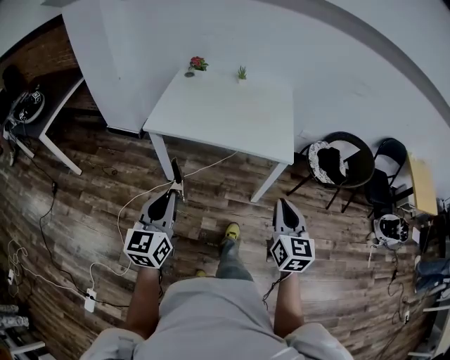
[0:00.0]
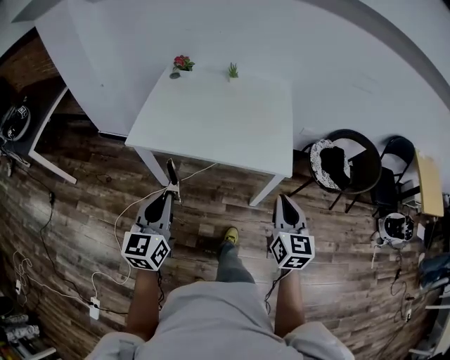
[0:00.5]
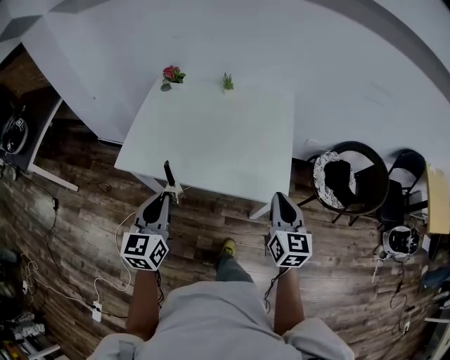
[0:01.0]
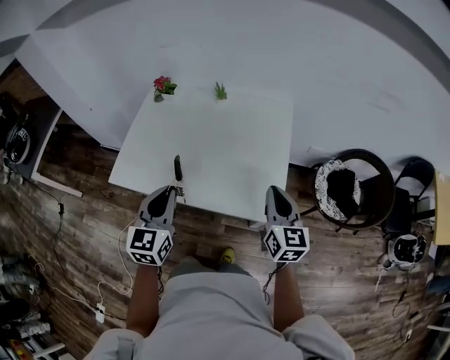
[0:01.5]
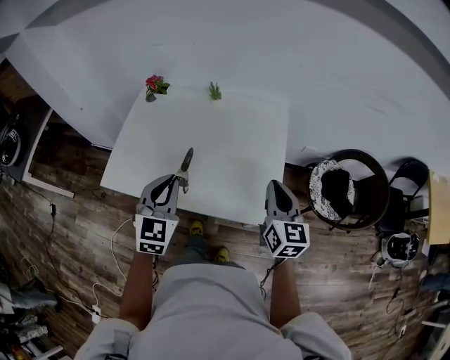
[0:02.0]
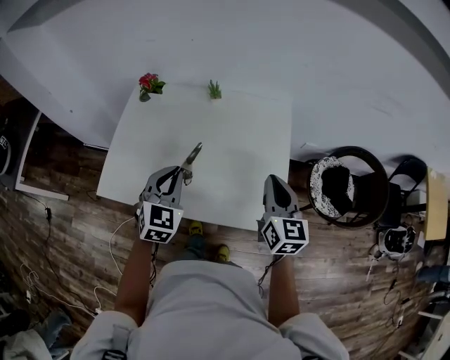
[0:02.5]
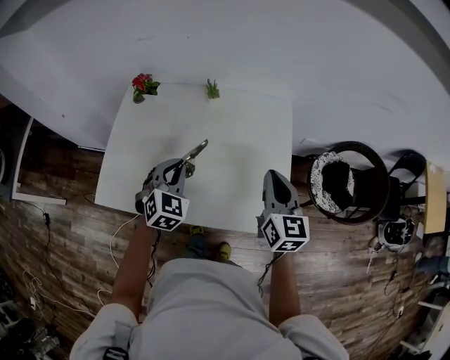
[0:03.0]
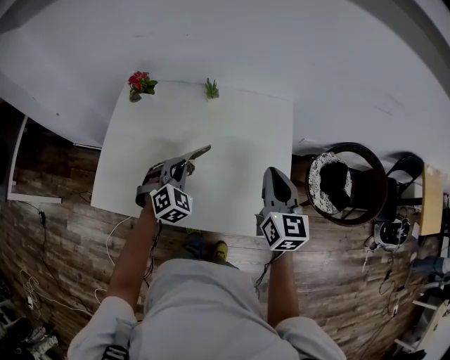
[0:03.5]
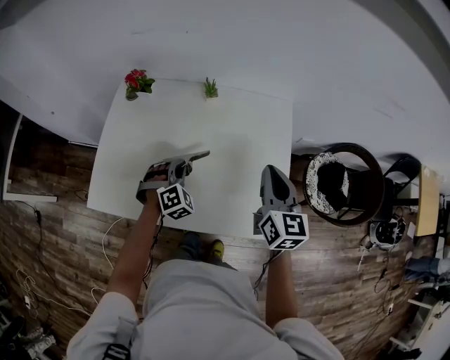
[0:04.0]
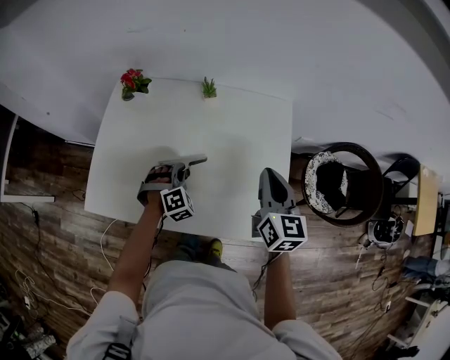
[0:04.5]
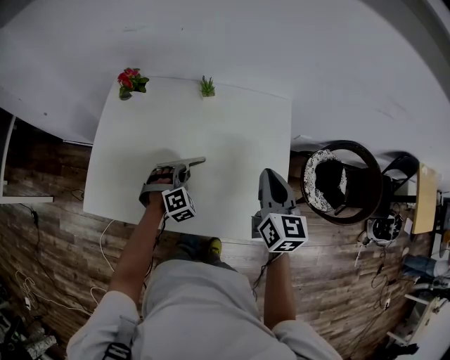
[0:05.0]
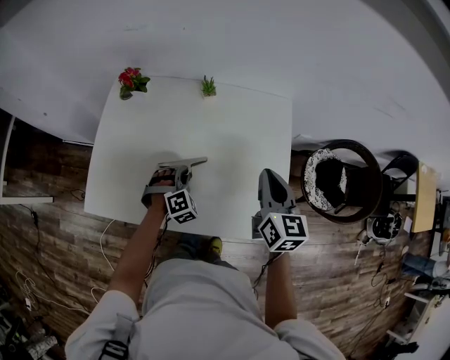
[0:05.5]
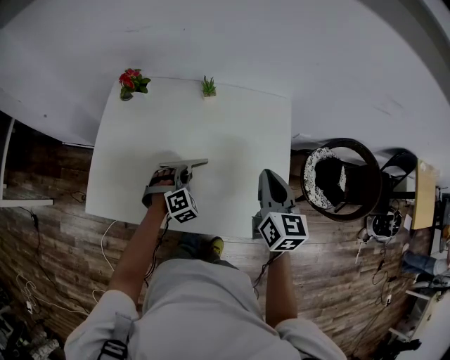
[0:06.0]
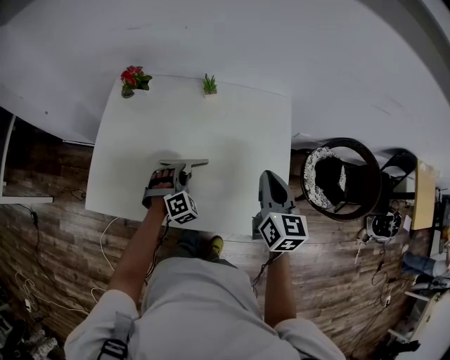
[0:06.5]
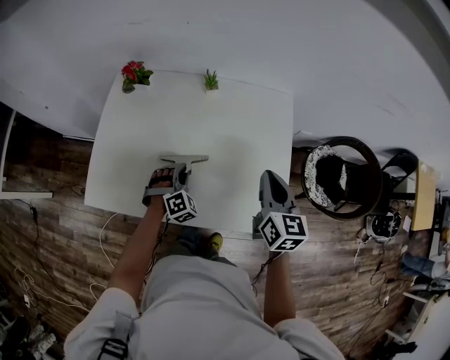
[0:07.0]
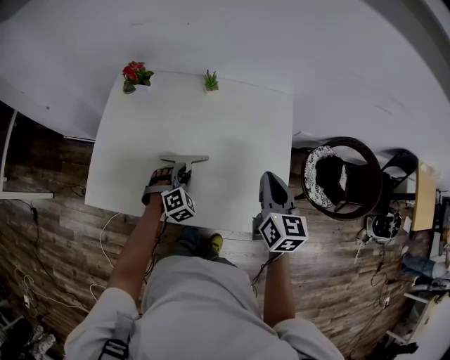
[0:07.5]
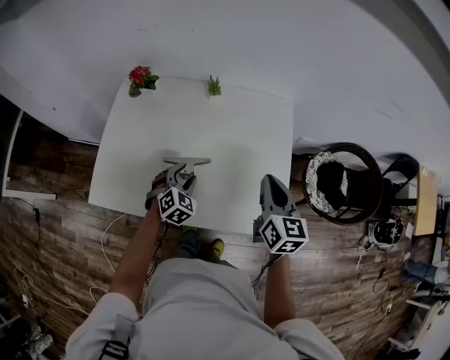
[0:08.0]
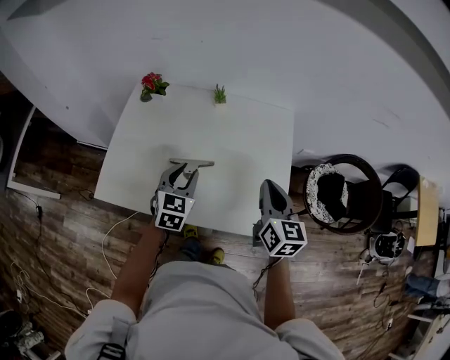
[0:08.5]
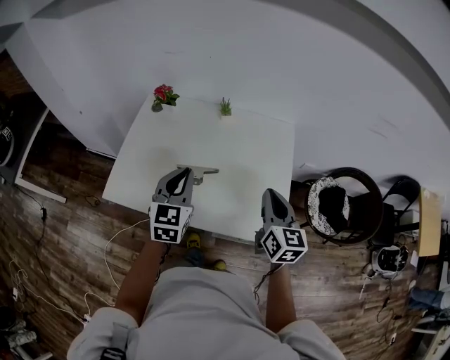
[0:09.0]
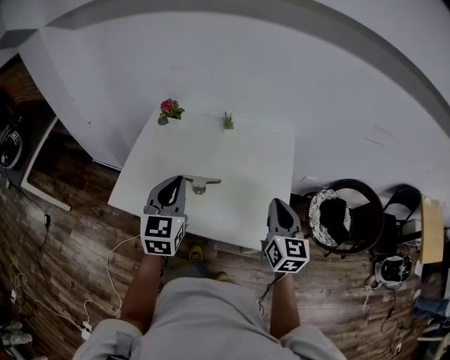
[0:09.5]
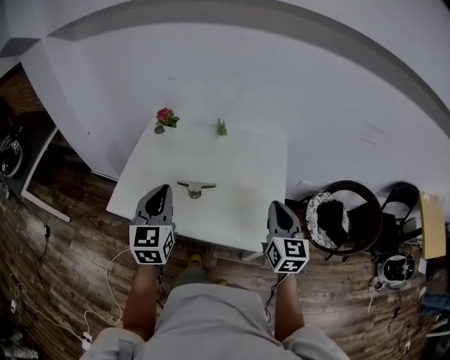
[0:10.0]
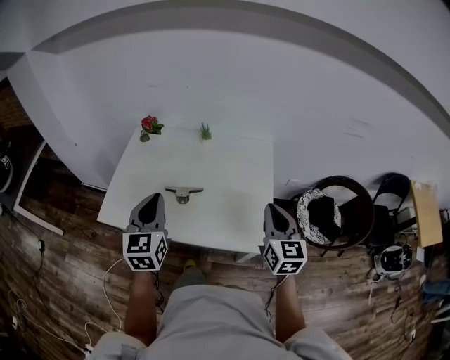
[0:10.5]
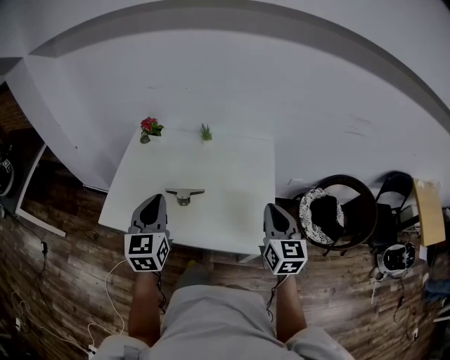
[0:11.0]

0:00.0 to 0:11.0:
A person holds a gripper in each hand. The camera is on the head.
0:00.0 to 0:02.0: Both grippers are carried forward, about 50 cm. The left gripper turns by some 30 degrees.
0:02.0 to 0:03.5: The left gripper heads forward and downward, covering about 25 cm, and changes its angle by roughly 40 degrees, while the right gripper travels forward and to the left by some 15 cm.
0:03.5 to 0:05.5: The left gripper is displaced downward by some 10 cm, and rotates approximately 20 degrees.
0:05.5 to 0:07.5: The left gripper opens its fingers.
0:07.5 to 0:09.0: The right gripper travels backward by about 5 cm. The left gripper travels upward by approximately 25 cm, rotates around the line of its fingers by roughly 50 degrees, counterclockwise from behind, and closes its fingers.
0:09.0 to 0:11.0: The left gripper is displaced backward and upward by roughly 10 cm, while the right gripper goes some 5 cm to the right.

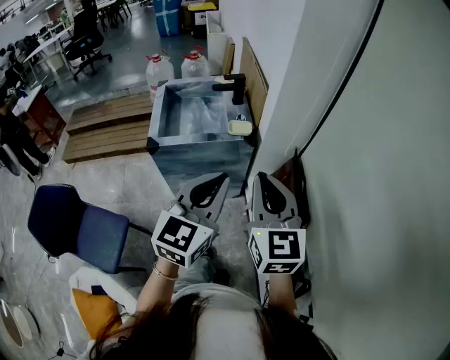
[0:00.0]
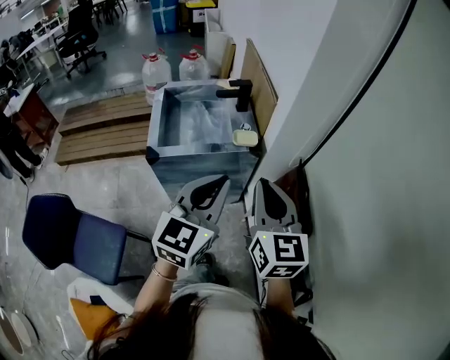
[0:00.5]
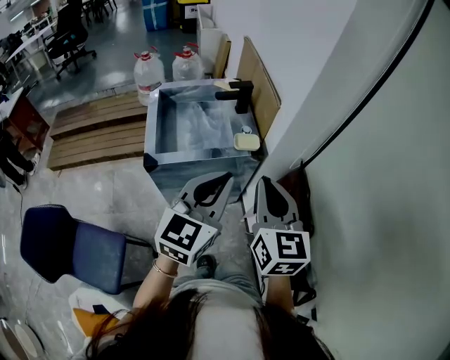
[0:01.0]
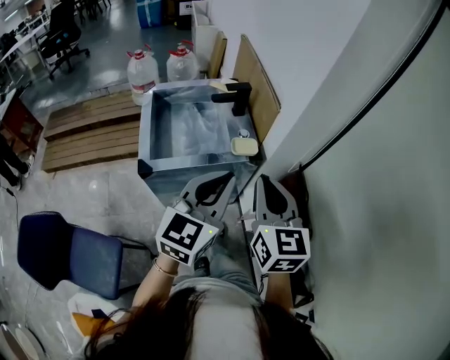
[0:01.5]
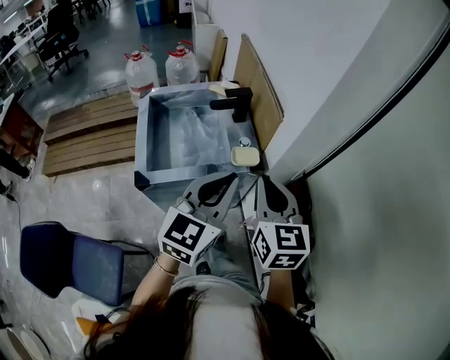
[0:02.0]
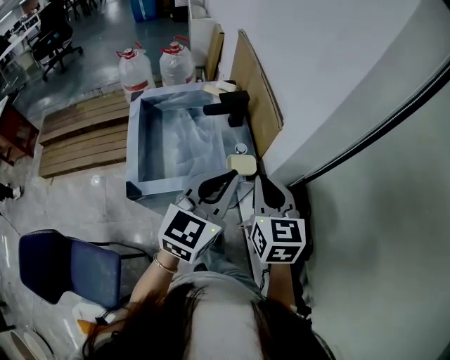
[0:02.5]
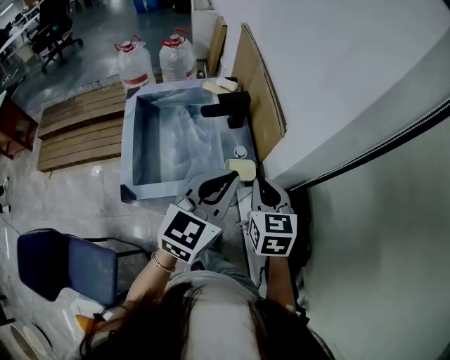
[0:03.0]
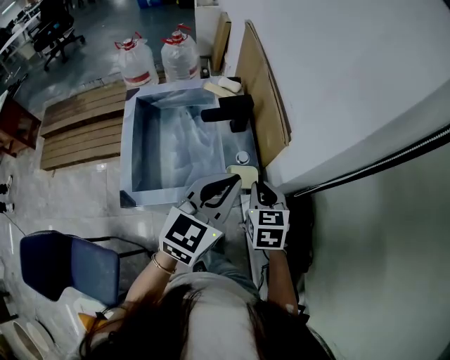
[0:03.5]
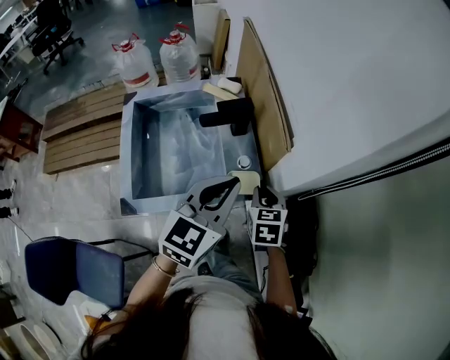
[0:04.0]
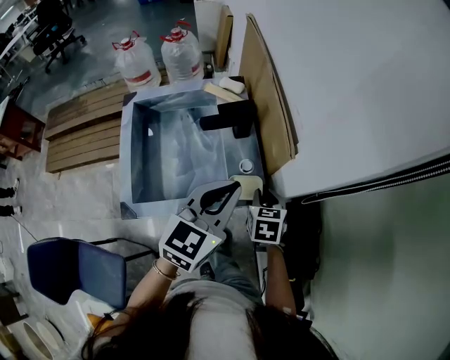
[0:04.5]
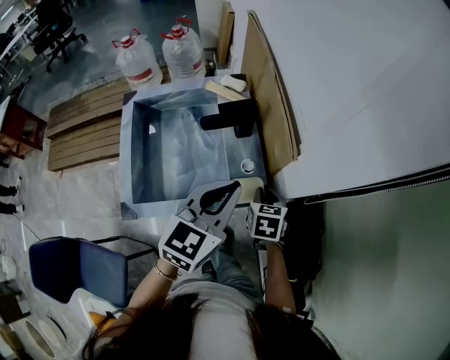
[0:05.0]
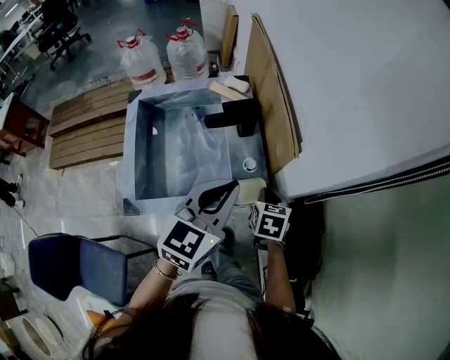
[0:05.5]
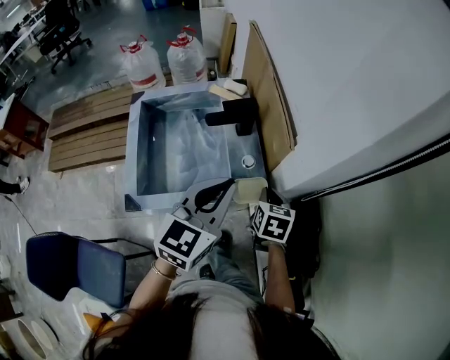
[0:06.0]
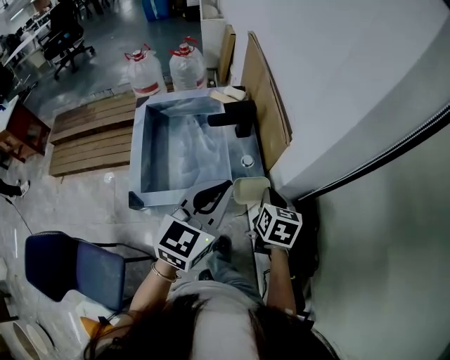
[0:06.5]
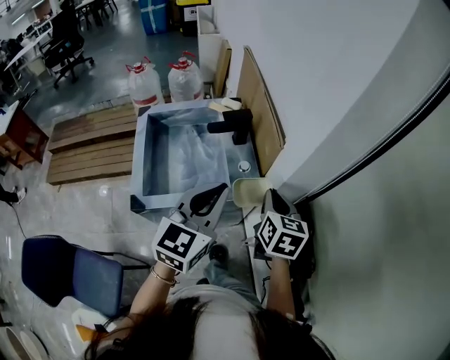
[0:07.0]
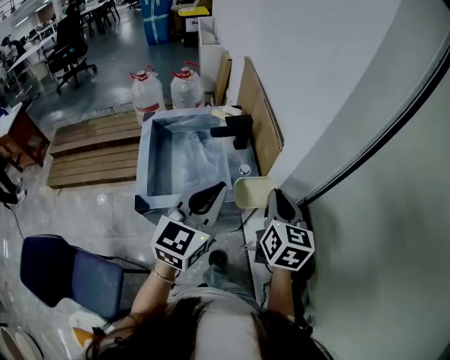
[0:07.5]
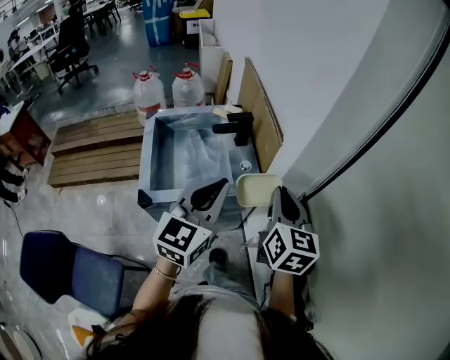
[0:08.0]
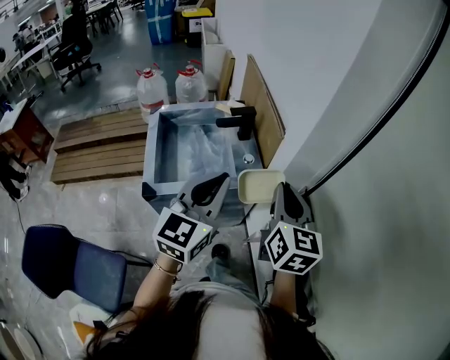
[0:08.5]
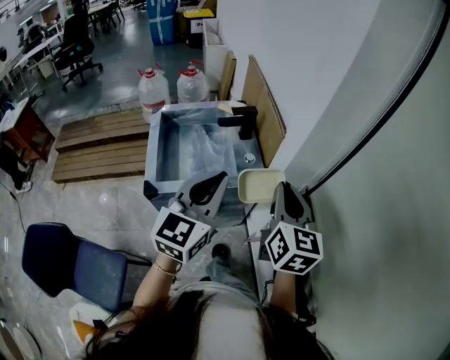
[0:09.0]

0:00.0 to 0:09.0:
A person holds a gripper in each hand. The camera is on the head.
0:00.0 to 0:02.0: The right gripper heads forward and to the left, covering about 20 cm. The left gripper shifts about 20 cm forward.
0:02.0 to 0:04.5: The right gripper travels downward and forward by approximately 35 cm, and tips its fingers downward by roughly 30 degrees; the left gripper moves forward and downward, approximately 20 cm.
0:04.5 to 0:07.0: The left gripper moves backward and upward, approximately 10 cm. Meanwhile the right gripper shifts roughly 20 cm upward and backward, and turns by some 20 degrees.
0:07.0 to 0:09.0: The left gripper goes some 10 cm backward. Meanwhile the right gripper moves upward and backward, about 15 cm.

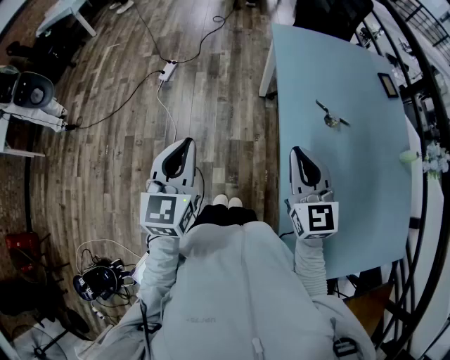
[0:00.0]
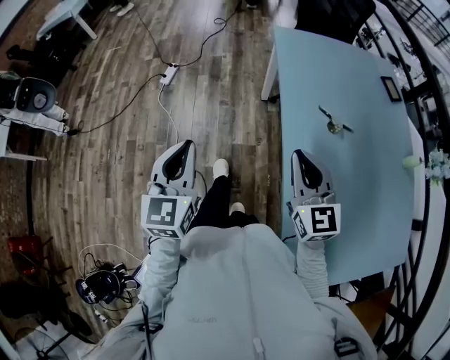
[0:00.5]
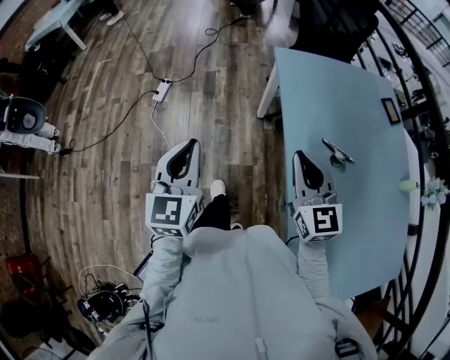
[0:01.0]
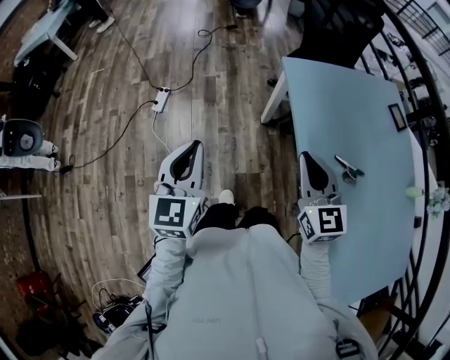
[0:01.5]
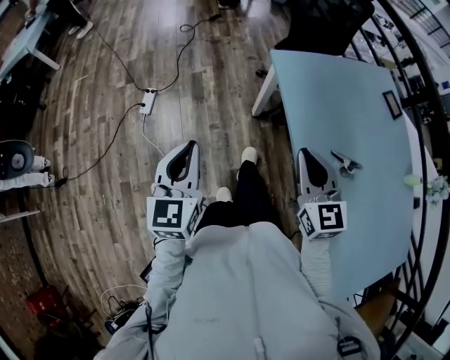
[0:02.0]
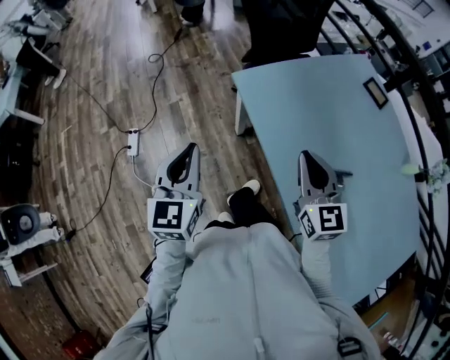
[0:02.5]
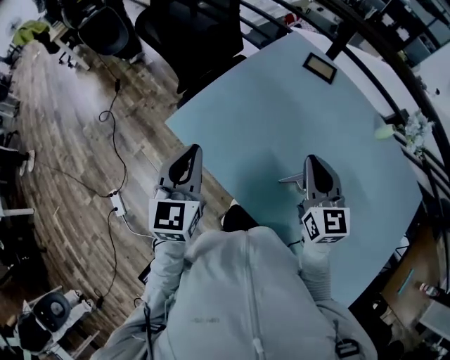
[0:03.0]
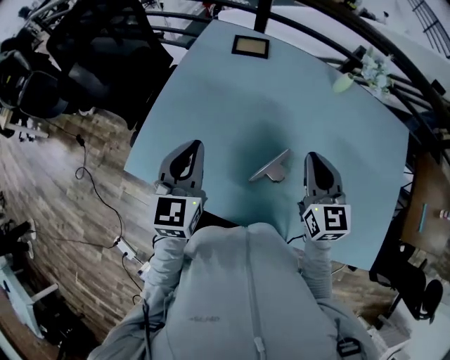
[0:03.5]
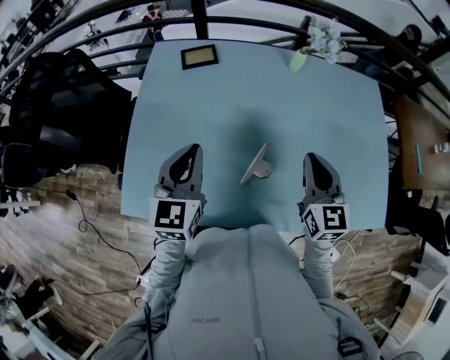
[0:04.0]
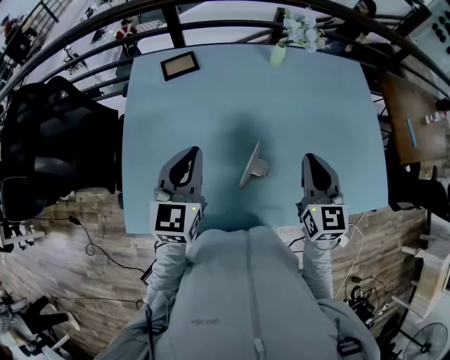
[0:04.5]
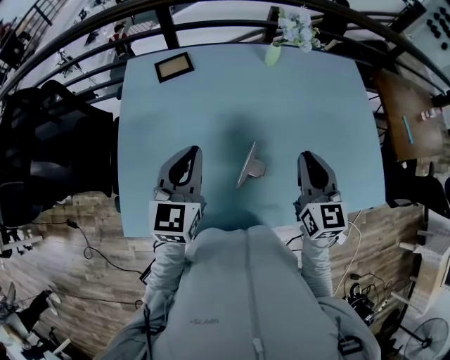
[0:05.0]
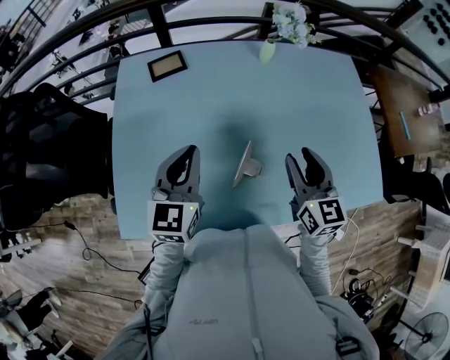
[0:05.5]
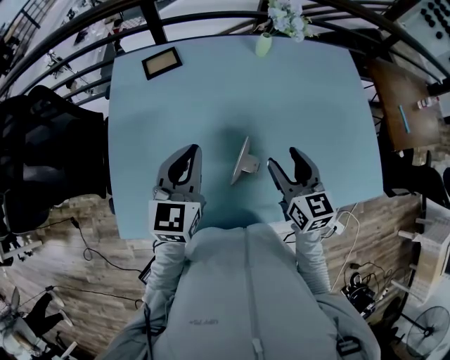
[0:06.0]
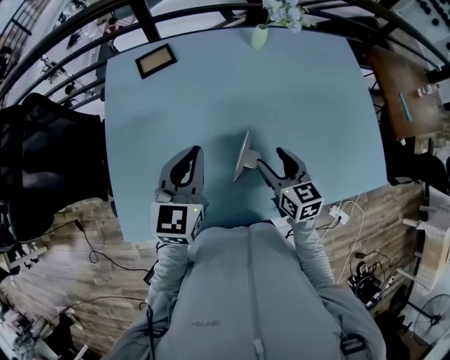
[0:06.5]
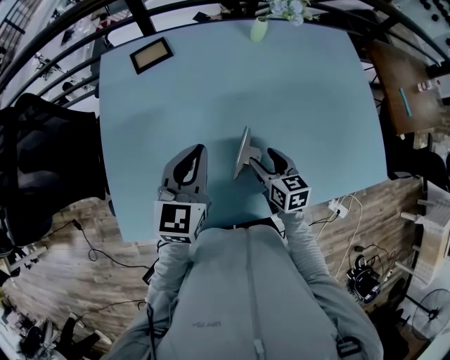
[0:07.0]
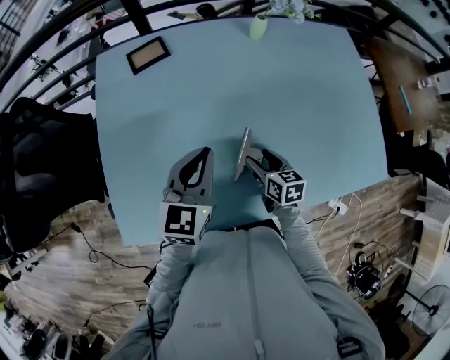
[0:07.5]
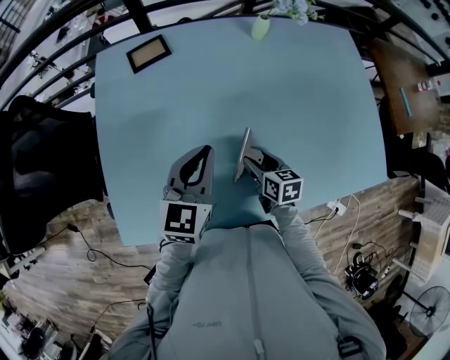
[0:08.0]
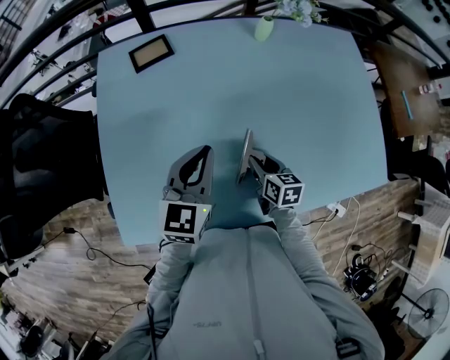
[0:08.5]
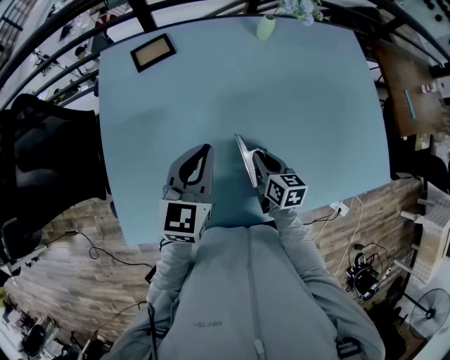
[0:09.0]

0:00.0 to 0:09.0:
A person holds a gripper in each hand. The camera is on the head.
0:00.0 to 0:02.0: The grippers both shift forward by approximately 30 cm.
0:02.0 to 0:04.5: The right gripper moves approximately 35 cm, and turns by some 90 degrees. Meanwhile the left gripper changes place by roughly 60 cm, and swivels roughly 90 degrees.
0:04.5 to 0:07.0: The right gripper shifts some 20 cm downward, swivels some 30 degrees, and opens up; the left gripper shifts by some 5 cm.
0:07.0 to 0:09.0: The right gripper closes up.
